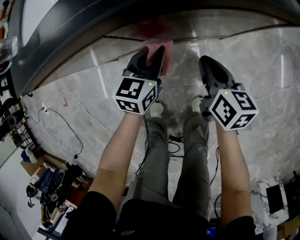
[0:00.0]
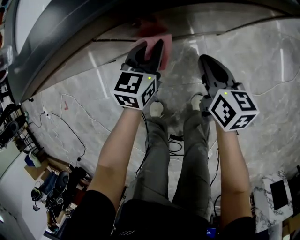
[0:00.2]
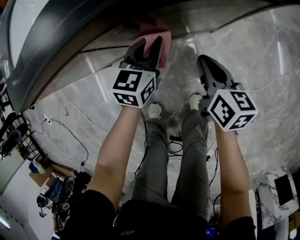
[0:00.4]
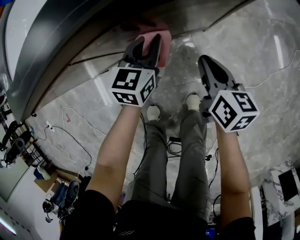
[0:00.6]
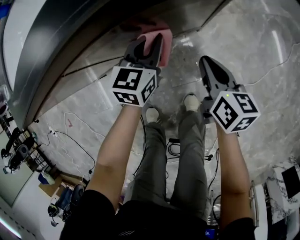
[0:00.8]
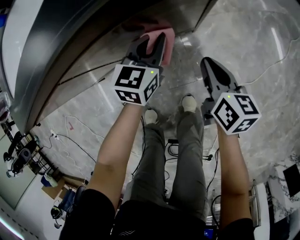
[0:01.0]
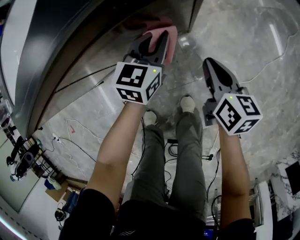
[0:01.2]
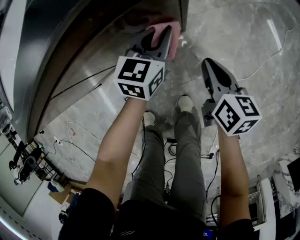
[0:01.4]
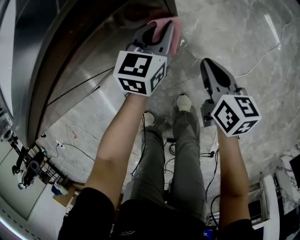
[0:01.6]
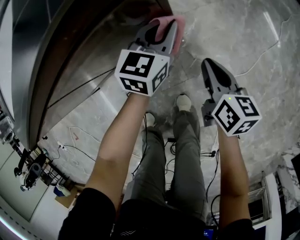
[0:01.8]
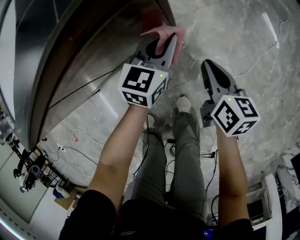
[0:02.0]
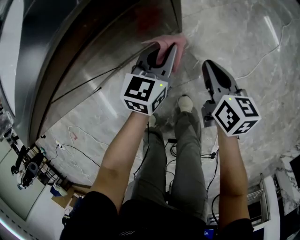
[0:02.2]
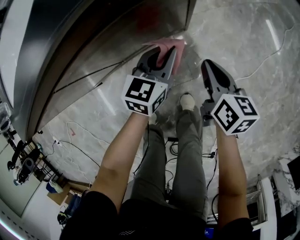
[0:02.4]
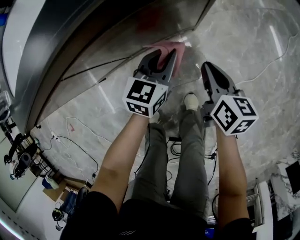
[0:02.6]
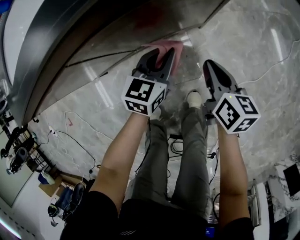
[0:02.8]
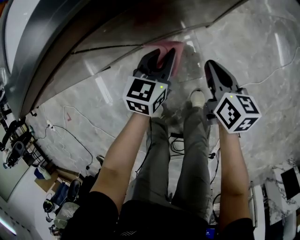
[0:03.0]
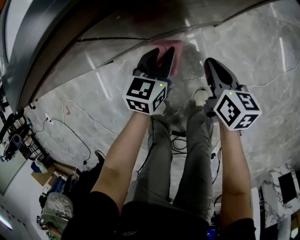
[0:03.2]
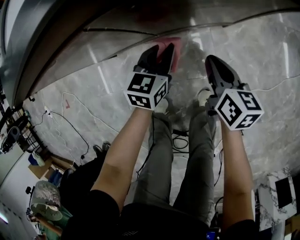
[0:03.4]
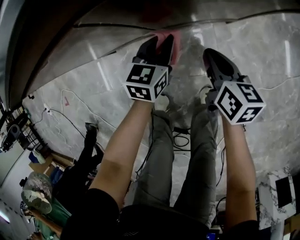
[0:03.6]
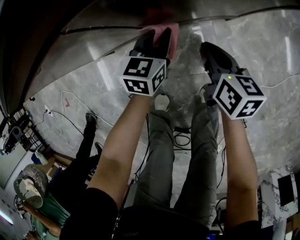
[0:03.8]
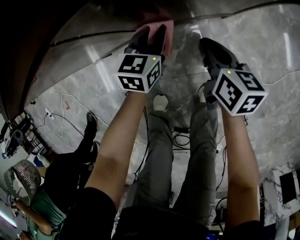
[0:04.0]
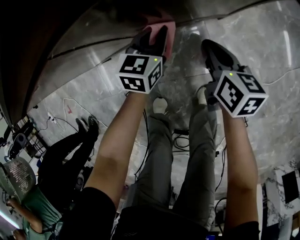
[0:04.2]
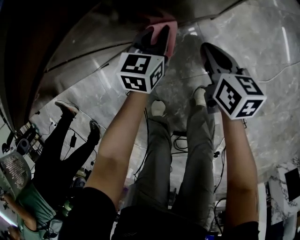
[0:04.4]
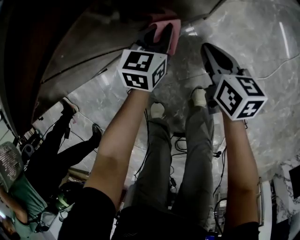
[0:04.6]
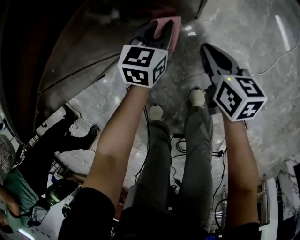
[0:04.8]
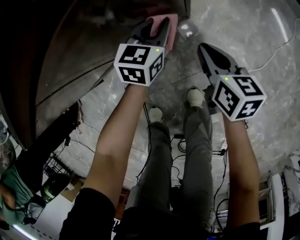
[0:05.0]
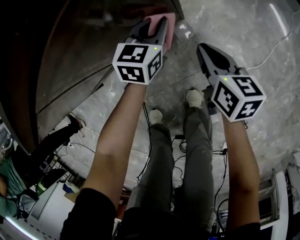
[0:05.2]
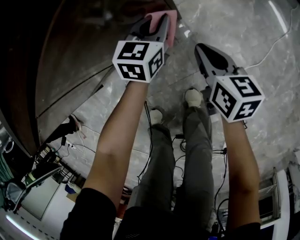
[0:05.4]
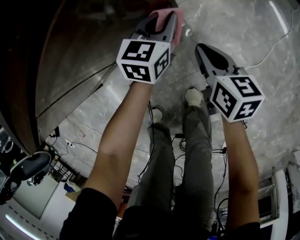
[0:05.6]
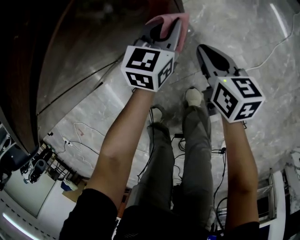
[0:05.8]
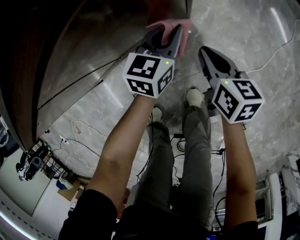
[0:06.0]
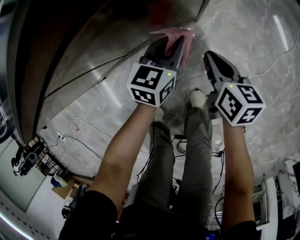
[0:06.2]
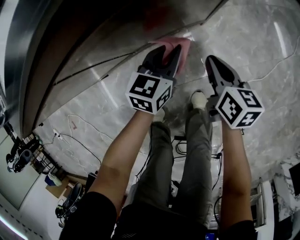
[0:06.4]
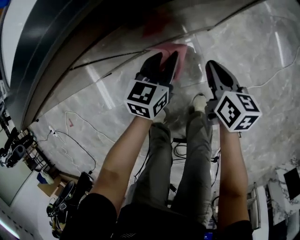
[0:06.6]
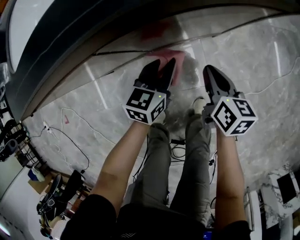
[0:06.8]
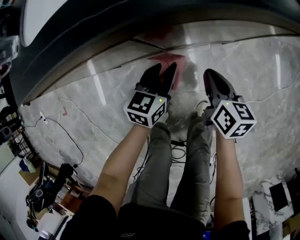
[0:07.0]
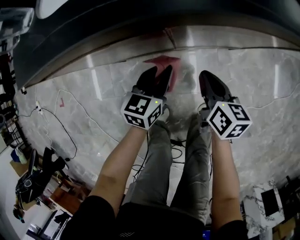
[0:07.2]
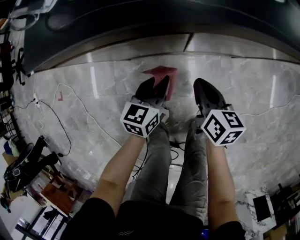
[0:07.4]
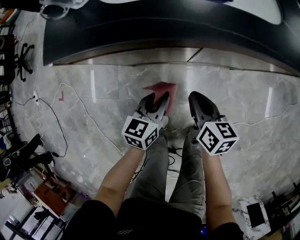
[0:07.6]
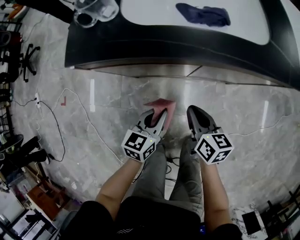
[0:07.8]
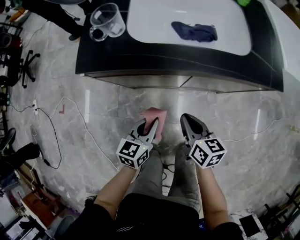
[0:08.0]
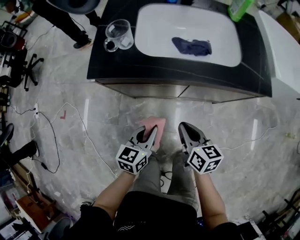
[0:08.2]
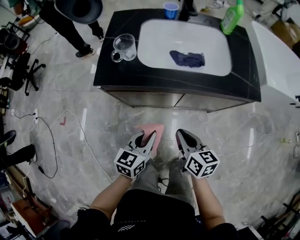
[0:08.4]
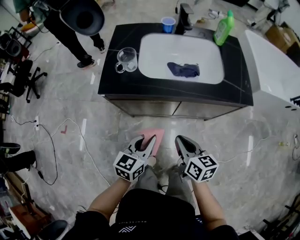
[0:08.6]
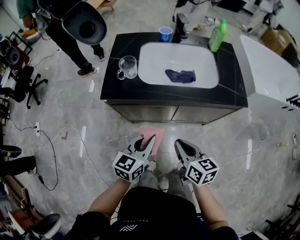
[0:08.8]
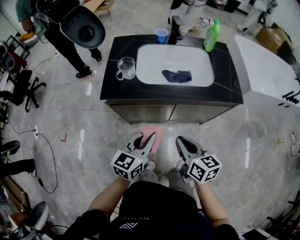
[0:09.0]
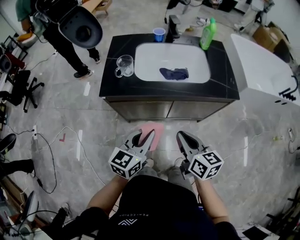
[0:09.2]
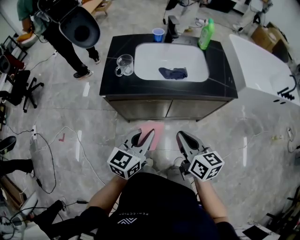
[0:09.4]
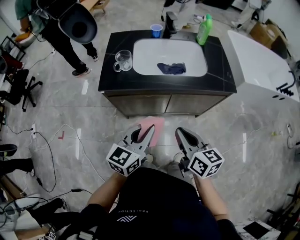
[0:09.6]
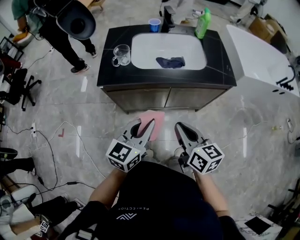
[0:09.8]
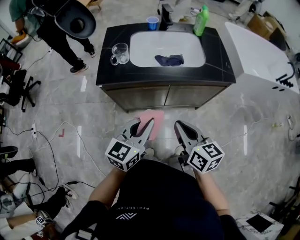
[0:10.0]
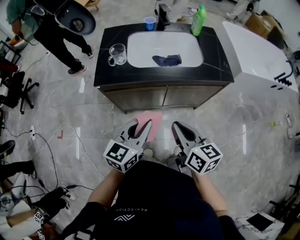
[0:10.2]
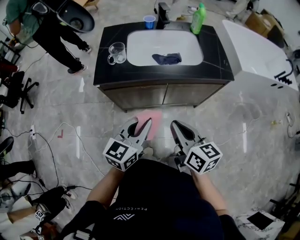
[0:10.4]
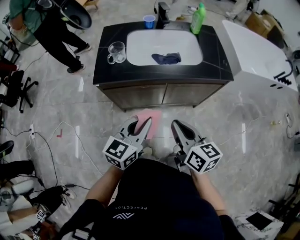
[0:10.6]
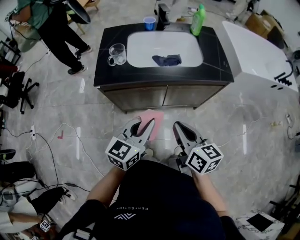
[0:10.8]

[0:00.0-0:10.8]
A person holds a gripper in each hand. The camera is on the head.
0.0 to 1.6 s: Both grippers move to the right, roughly 25 cm. The left gripper rotates some 20 degrees.
1.6 to 3.0 s: The left gripper shifts some 20 cm to the left and backward. Meanwhile the right gripper travels to the left and backward by roughly 15 cm.
3.0 to 4.6 s: The left gripper is displaced forward and downward by roughly 10 cm, and moves some 10 cm to the left and comes back; the right gripper travels to the left and back again, approximately 10 cm each way.
4.6 to 6.2 s: The left gripper travels to the right by roughly 5 cm.
6.2 to 7.8 s: The left gripper shifts by some 40 cm, and changes its angle by about 30 degrees. The right gripper changes place by about 35 cm, and changes its angle by roughly 30 degrees.
7.8 to 9.2 s: Both grippers move upward, about 30 cm. The left gripper swivels about 20 degrees.
9.2 to 10.8 s: The grippers make only small movements.

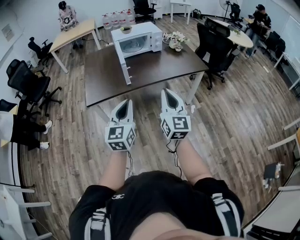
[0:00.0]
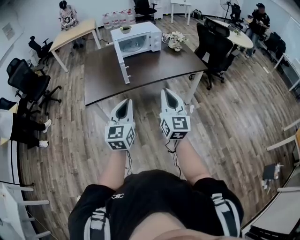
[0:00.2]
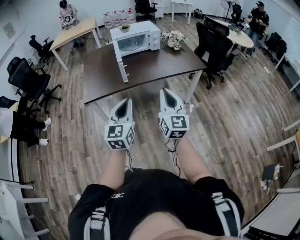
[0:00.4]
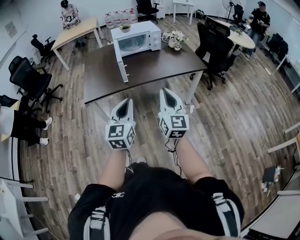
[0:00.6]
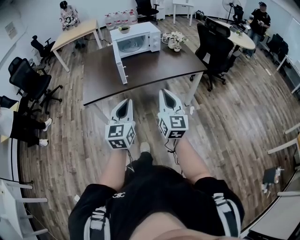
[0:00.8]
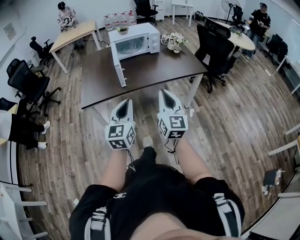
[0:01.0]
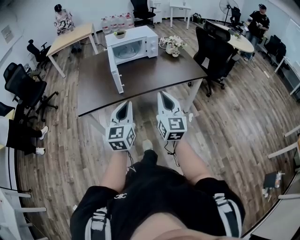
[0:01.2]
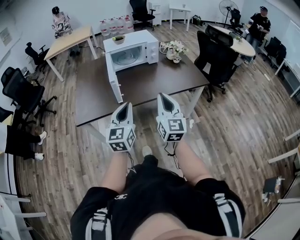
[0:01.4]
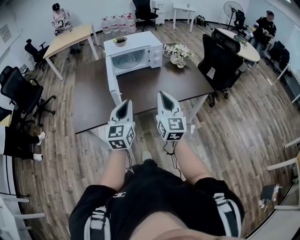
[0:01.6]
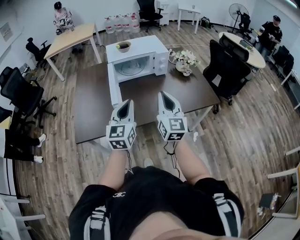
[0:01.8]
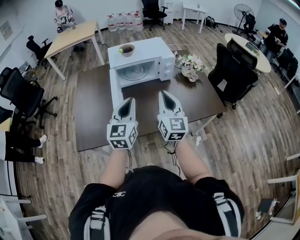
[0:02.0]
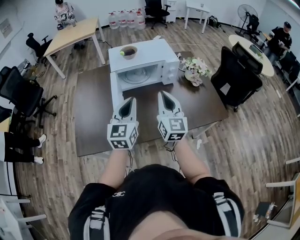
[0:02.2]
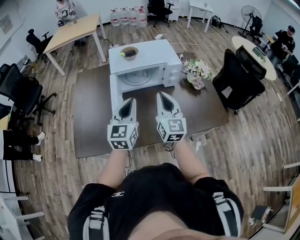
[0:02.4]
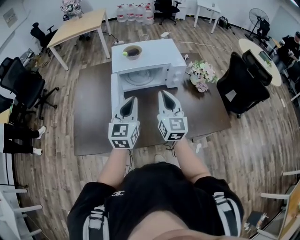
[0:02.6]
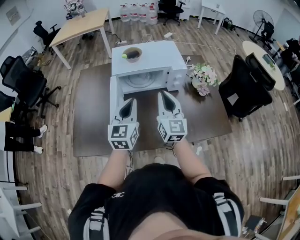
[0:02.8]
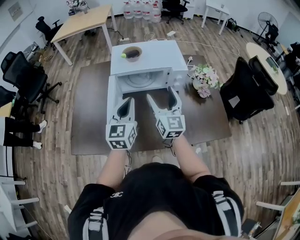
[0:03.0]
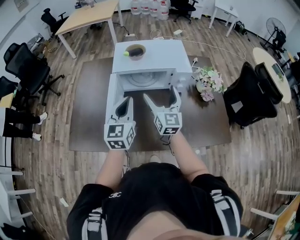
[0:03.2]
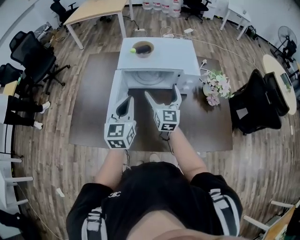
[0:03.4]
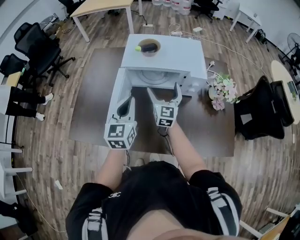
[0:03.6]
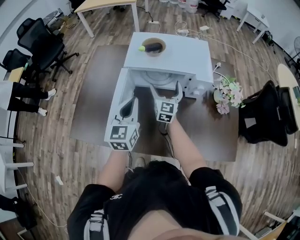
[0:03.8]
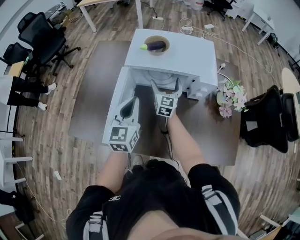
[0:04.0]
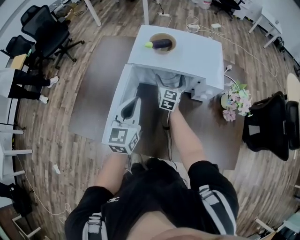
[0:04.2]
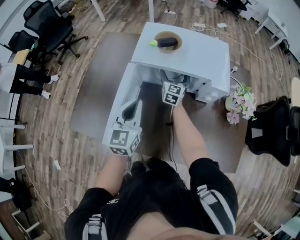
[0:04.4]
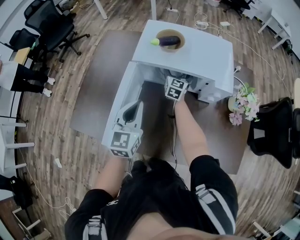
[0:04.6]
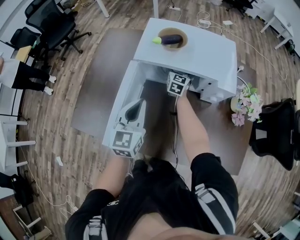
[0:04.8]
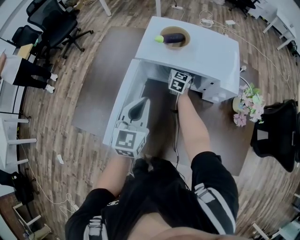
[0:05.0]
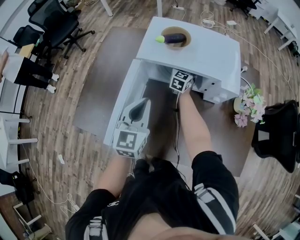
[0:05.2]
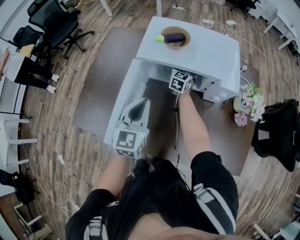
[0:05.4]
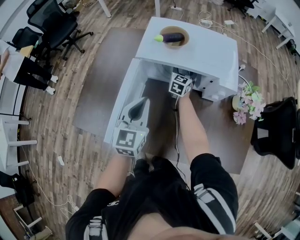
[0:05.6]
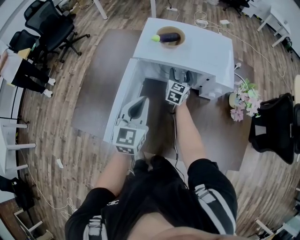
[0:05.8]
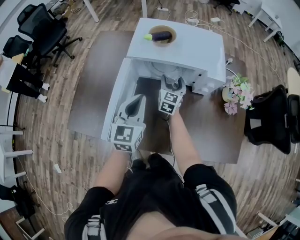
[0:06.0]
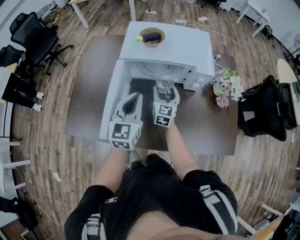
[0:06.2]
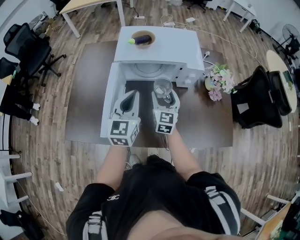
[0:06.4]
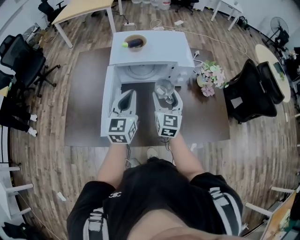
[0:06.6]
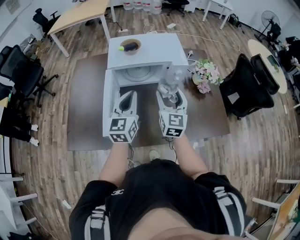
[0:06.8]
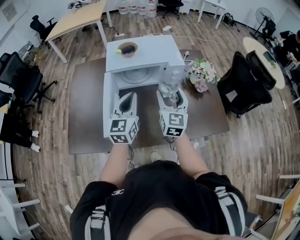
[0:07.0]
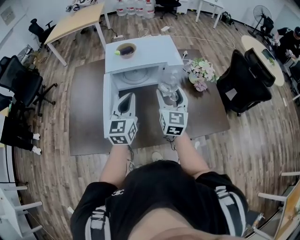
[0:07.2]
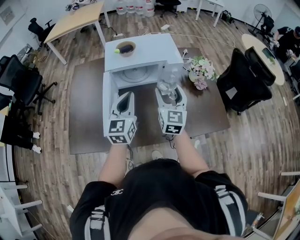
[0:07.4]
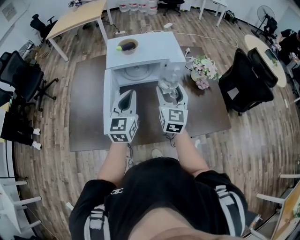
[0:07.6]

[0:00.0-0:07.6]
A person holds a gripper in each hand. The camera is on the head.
0.0 to 1.6 s: The two grippers go approximately 30 cm forward.
1.6 to 3.0 s: Both grippers move forward, some 35 cm. The right gripper opens its fingers.
3.0 to 4.6 s: The left gripper heads downward and forward, covering approximately 15 cm, while the right gripper goes approximately 40 cm forward and downward.
4.6 to 6.0 s: The right gripper travels backward by roughly 10 cm, and closes its fingers.
6.0 to 7.6 s: The right gripper goes roughly 30 cm backward, upward and to the right, while the left gripper is displaced upward and backward by some 10 cm.

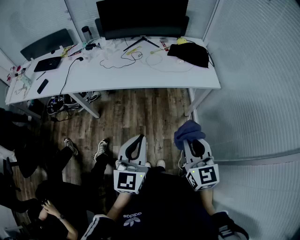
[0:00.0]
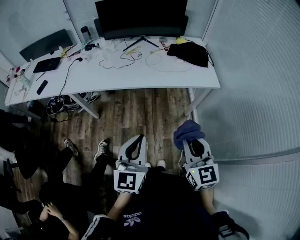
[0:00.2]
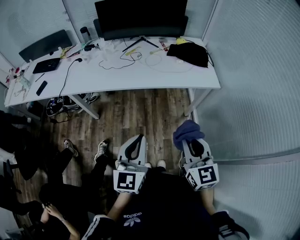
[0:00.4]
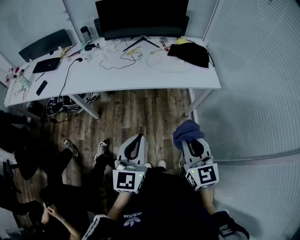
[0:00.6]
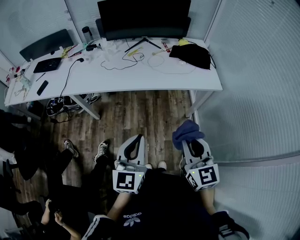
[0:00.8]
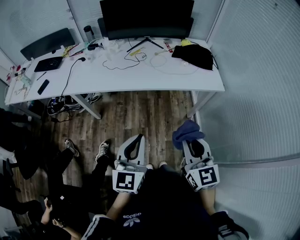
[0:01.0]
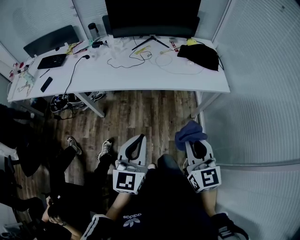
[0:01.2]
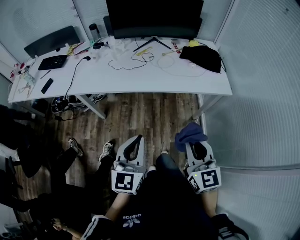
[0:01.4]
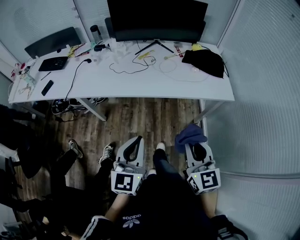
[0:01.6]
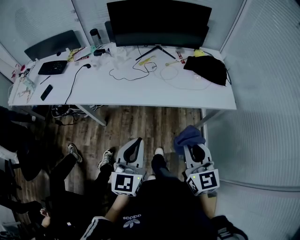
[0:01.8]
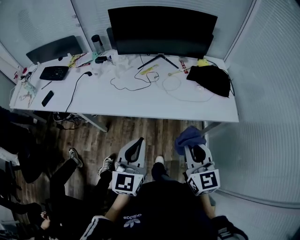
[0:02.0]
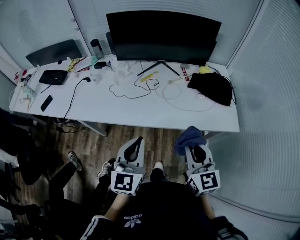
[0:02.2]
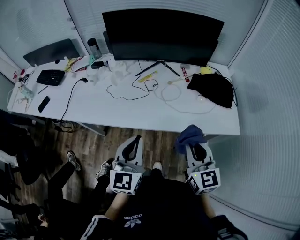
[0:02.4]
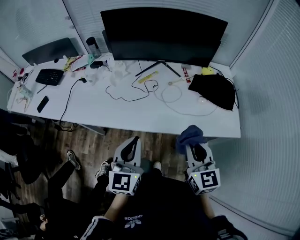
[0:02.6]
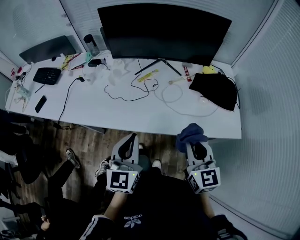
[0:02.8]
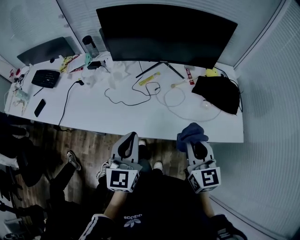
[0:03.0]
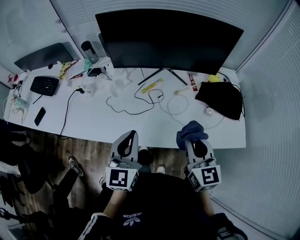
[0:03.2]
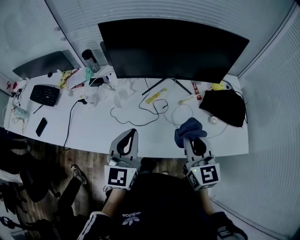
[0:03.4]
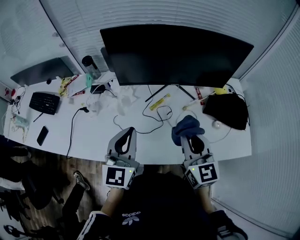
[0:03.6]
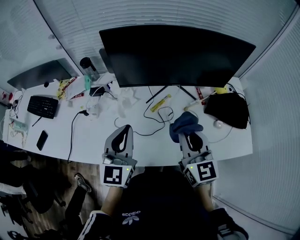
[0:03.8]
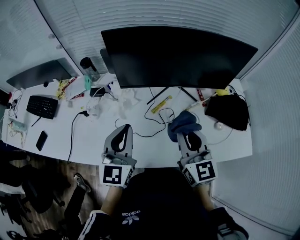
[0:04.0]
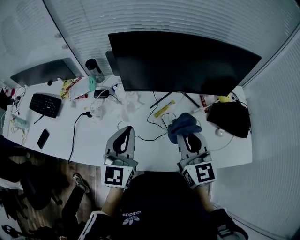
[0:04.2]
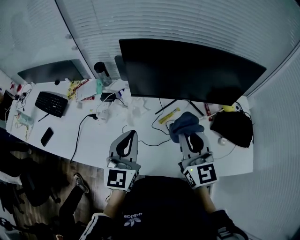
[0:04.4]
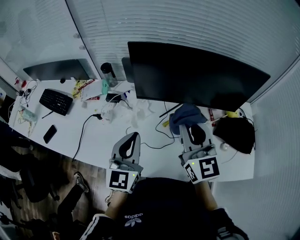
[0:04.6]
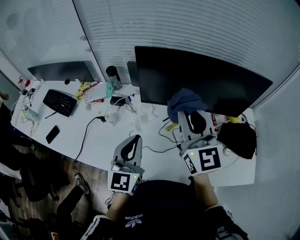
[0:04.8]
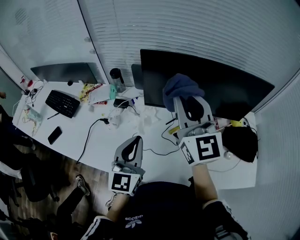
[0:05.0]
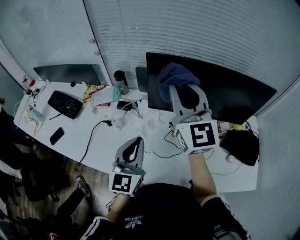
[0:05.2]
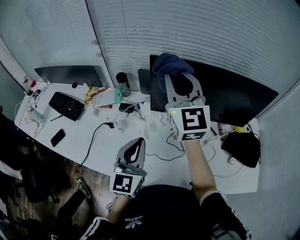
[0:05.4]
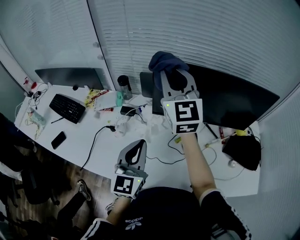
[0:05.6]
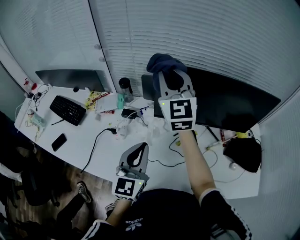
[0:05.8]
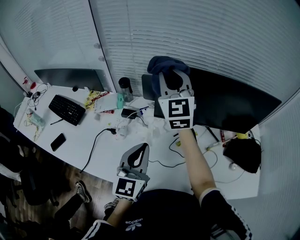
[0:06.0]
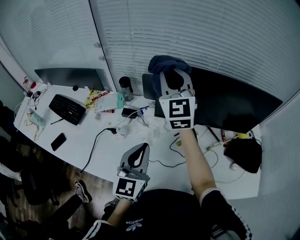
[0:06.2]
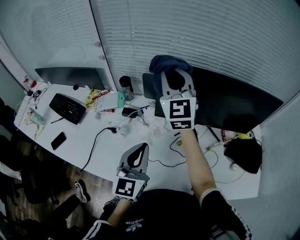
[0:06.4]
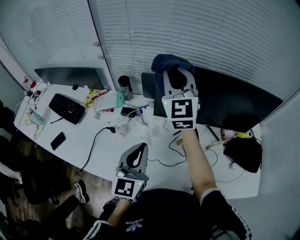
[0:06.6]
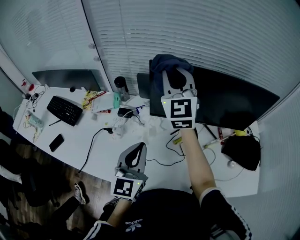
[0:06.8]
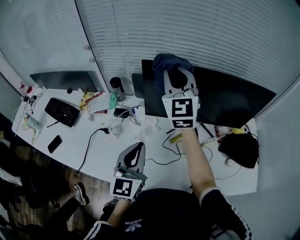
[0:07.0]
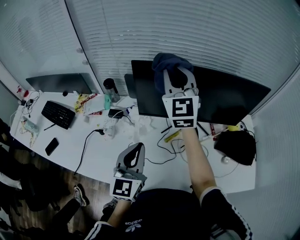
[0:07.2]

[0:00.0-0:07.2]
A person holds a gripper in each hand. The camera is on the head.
0.0 to 1.4 s: The two grippers go about 5 cm to the left.
1.4 to 2.8 s: Both grippers travel together forward, about 30 cm.
2.8 to 4.4 s: The grippers both shift forward and to the left by some 30 cm.
4.4 to 5.8 s: The left gripper moves to the left, roughly 5 cm. Meanwhile the right gripper is displaced forward, to the left and upward by about 30 cm, and swivels approximately 20 degrees.
5.8 to 7.2 s: The left gripper is displaced to the right by about 5 cm, while the right gripper shifts roughly 10 cm to the right.
